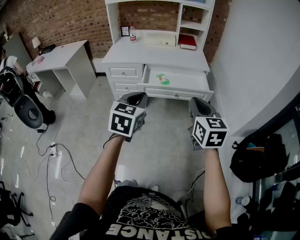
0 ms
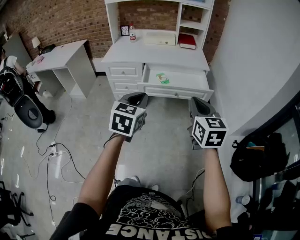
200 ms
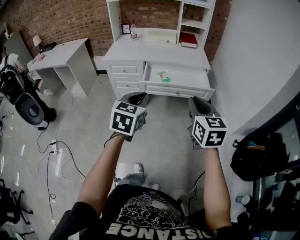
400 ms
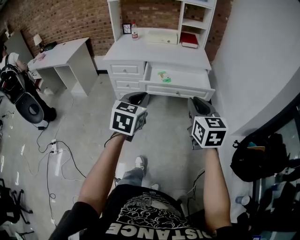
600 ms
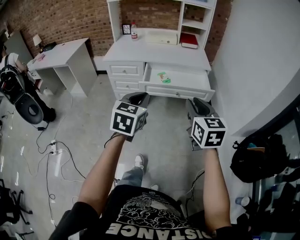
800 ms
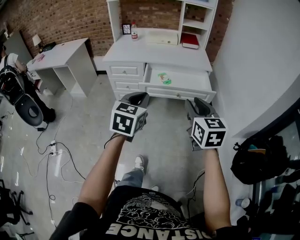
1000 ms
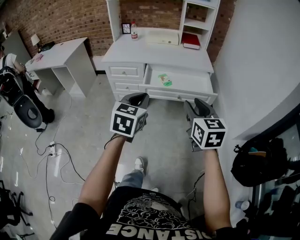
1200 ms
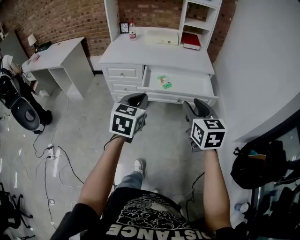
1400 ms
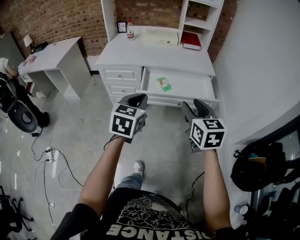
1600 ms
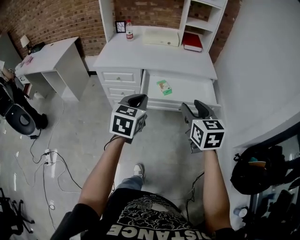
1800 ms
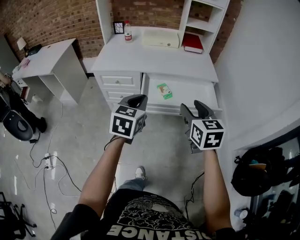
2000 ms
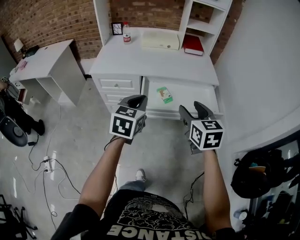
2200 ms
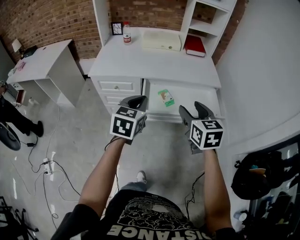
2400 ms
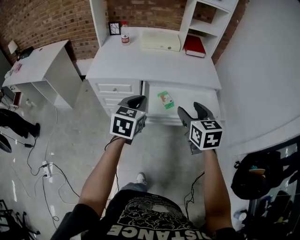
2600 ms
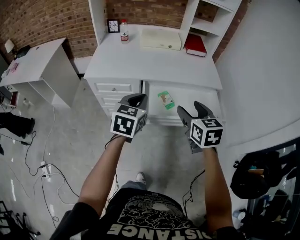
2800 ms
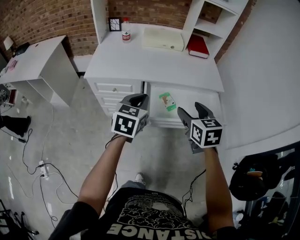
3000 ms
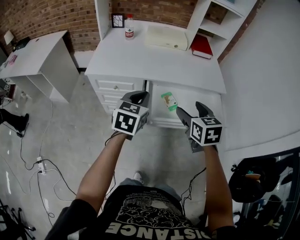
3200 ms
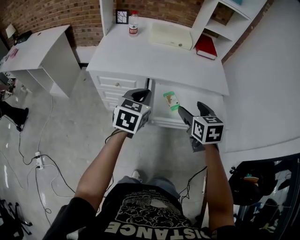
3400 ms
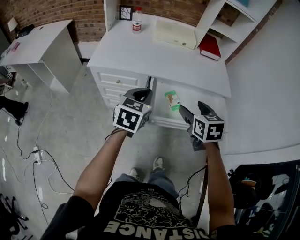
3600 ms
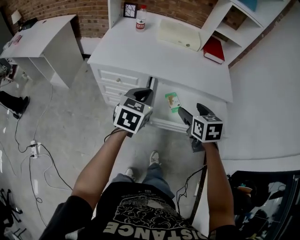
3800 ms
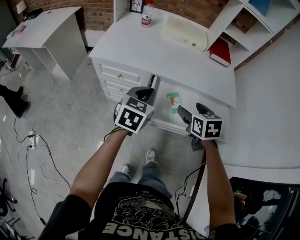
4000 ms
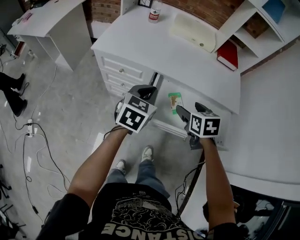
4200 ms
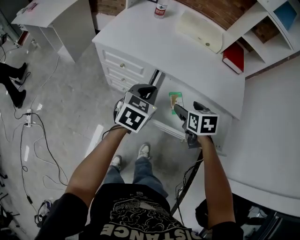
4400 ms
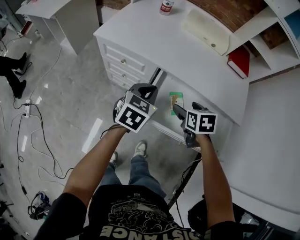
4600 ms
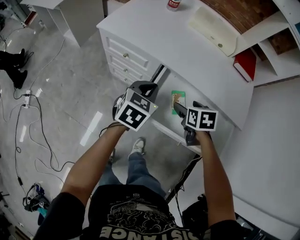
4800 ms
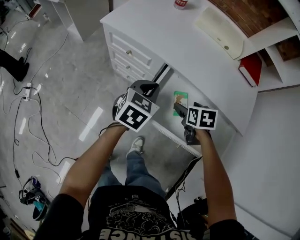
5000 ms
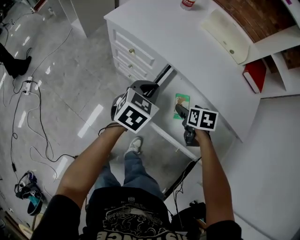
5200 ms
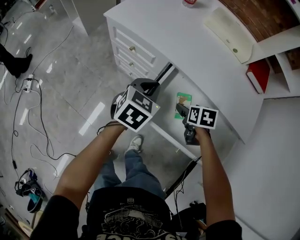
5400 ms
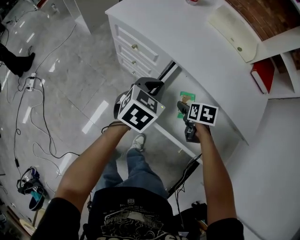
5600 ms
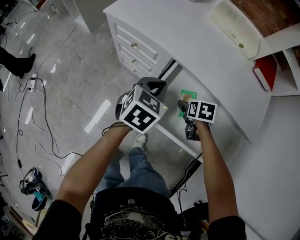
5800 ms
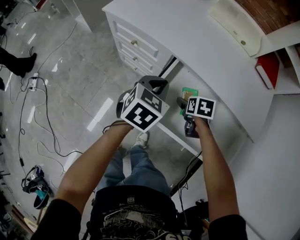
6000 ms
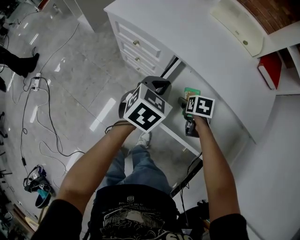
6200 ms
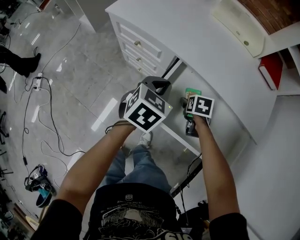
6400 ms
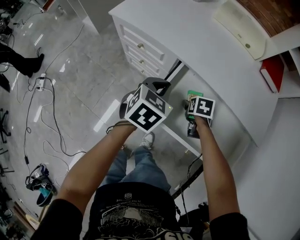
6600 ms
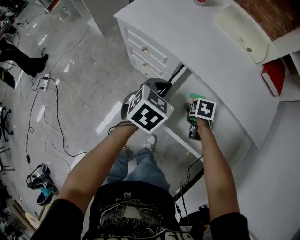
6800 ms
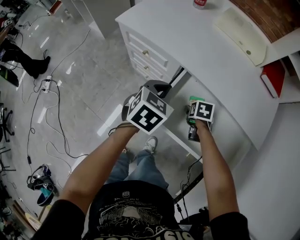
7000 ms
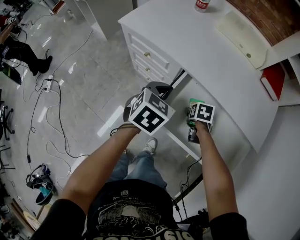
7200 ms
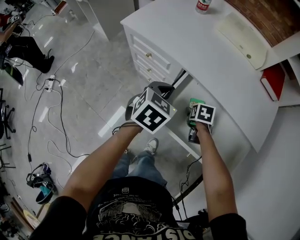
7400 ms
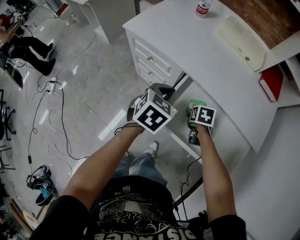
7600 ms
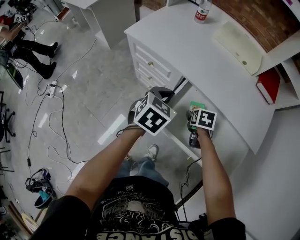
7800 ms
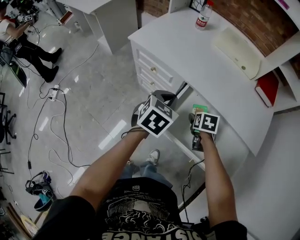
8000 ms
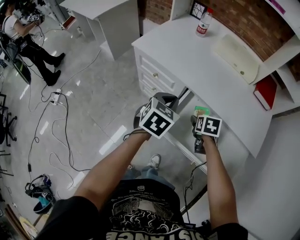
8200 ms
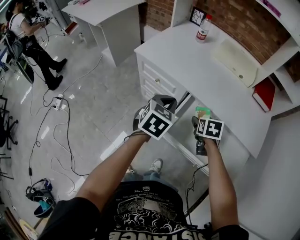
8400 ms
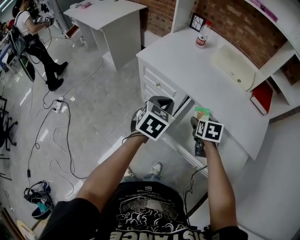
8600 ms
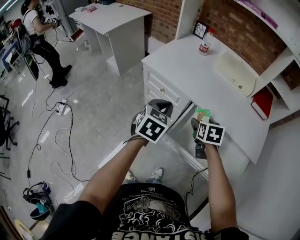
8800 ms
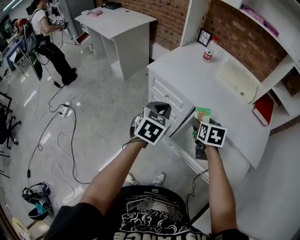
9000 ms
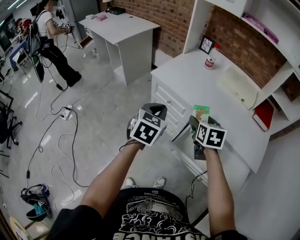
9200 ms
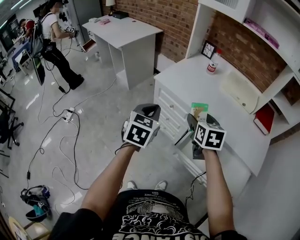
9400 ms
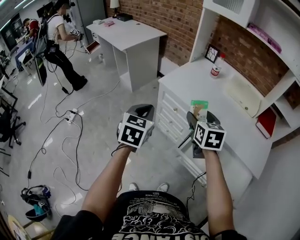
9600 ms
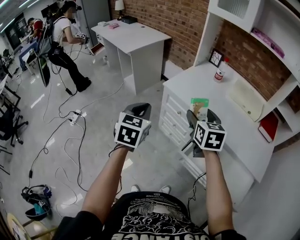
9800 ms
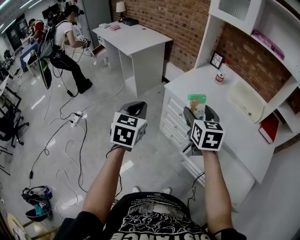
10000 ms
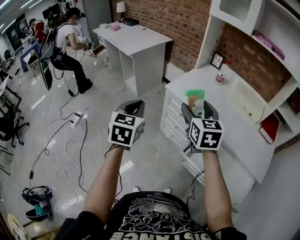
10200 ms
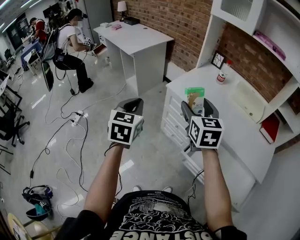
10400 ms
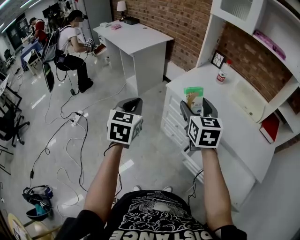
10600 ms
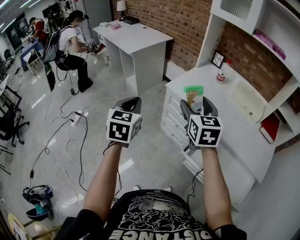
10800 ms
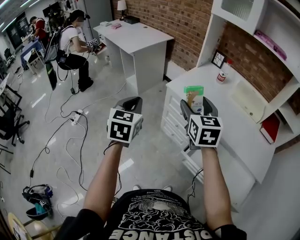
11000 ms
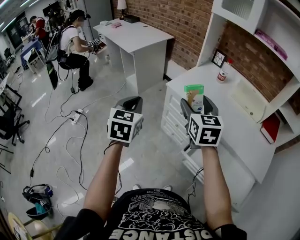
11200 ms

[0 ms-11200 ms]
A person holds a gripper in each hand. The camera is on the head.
0 ms to 1600 ms: Both grippers travel together forward, approximately 15 cm. The right gripper opens up.
1600 ms to 3200 ms: The right gripper shifts roughly 25 cm forward and to the left, and opens up. The left gripper goes roughly 25 cm forward.
3200 ms to 4800 ms: The left gripper travels downward and forward by some 15 cm. The right gripper heads downward and forward, covering about 25 cm, and turns by some 30 degrees.
4800 ms to 6400 ms: The left gripper ends up approximately 5 cm from where it was. Meanwhile the right gripper shifts approximately 15 cm downward.
6400 ms to 8000 ms: The grippers both shift upward by some 5 cm.
8000 ms to 9600 ms: The left gripper heads to the left and upward, covering about 25 cm, and changes its angle by some 30 degrees. The right gripper goes roughly 35 cm upward and to the left, and tips its fingers upward by some 40 degrees.
9600 ms to 11200 ms: The right gripper moves to the left and upward, approximately 10 cm, while the left gripper shifts about 10 cm to the left.

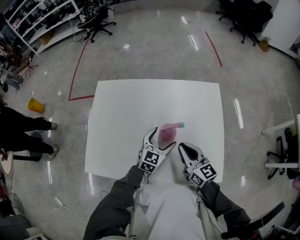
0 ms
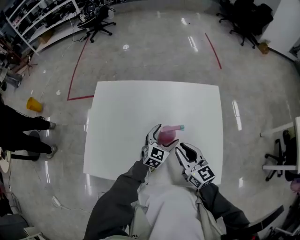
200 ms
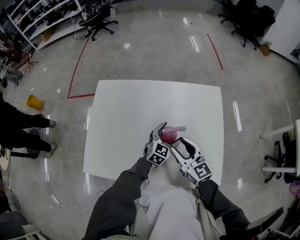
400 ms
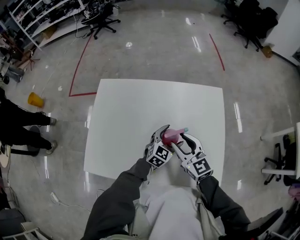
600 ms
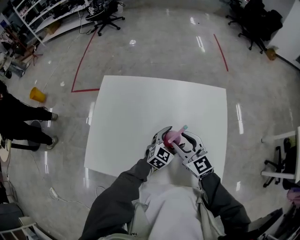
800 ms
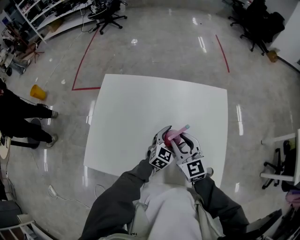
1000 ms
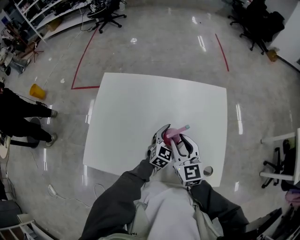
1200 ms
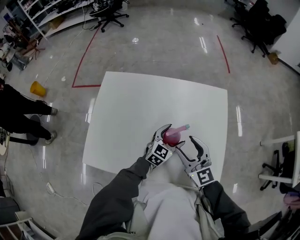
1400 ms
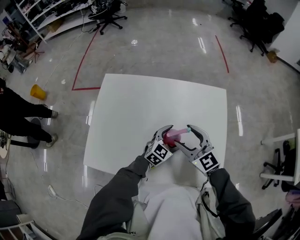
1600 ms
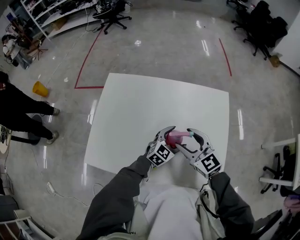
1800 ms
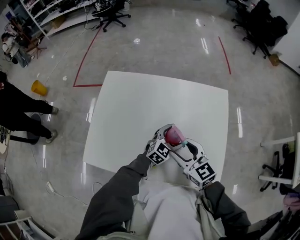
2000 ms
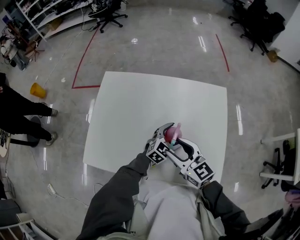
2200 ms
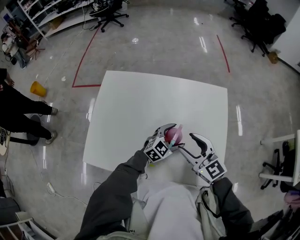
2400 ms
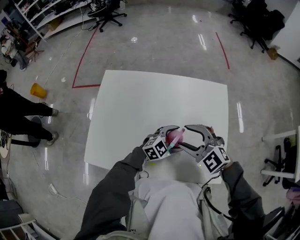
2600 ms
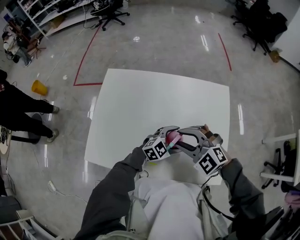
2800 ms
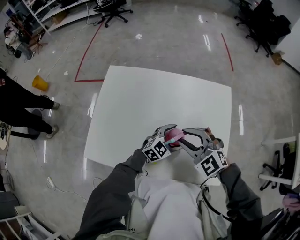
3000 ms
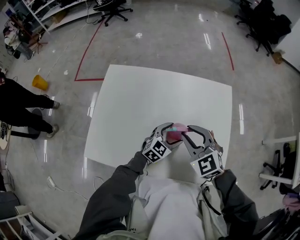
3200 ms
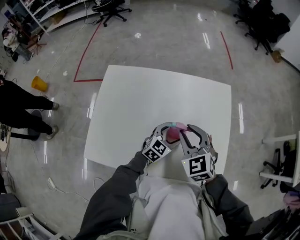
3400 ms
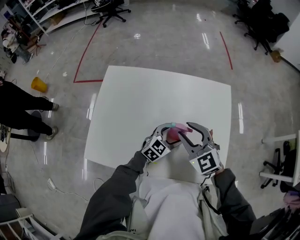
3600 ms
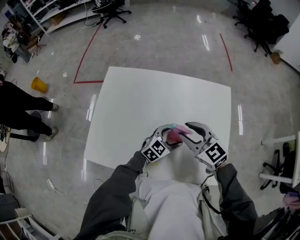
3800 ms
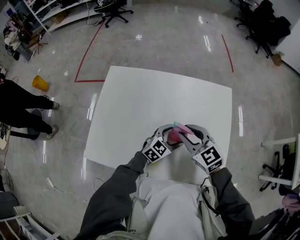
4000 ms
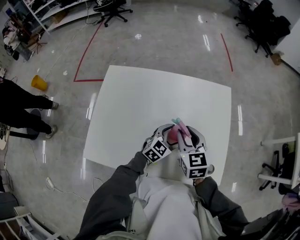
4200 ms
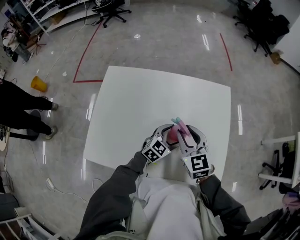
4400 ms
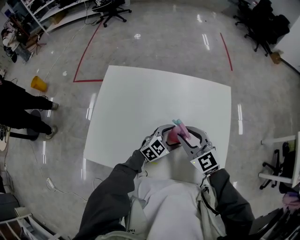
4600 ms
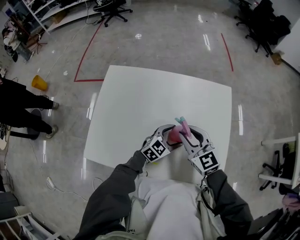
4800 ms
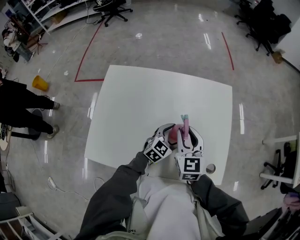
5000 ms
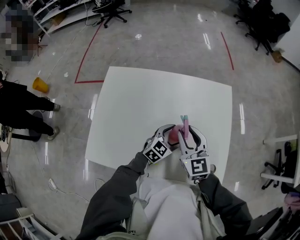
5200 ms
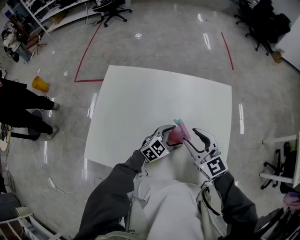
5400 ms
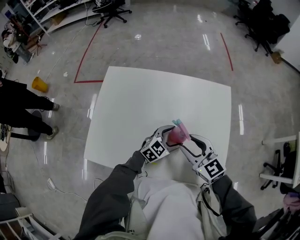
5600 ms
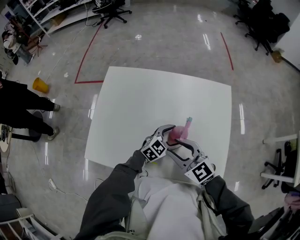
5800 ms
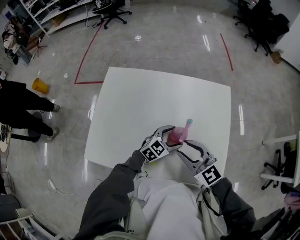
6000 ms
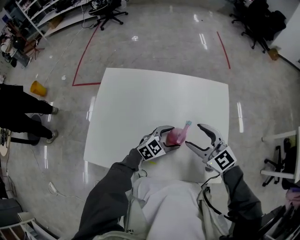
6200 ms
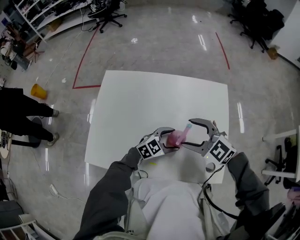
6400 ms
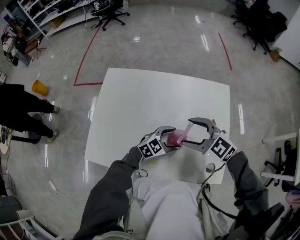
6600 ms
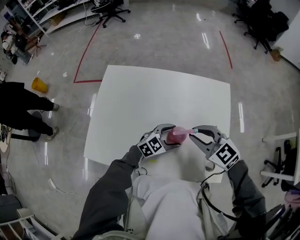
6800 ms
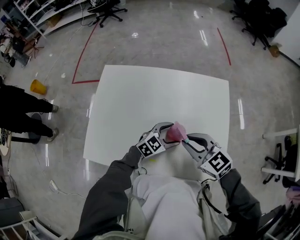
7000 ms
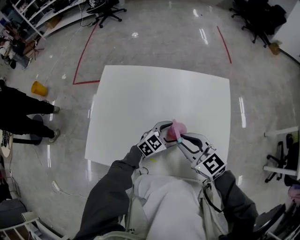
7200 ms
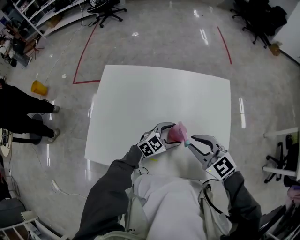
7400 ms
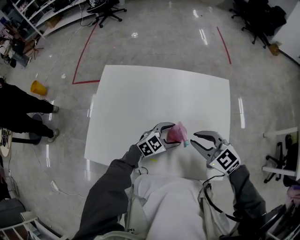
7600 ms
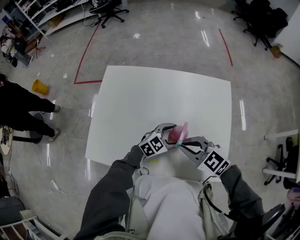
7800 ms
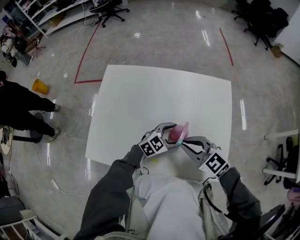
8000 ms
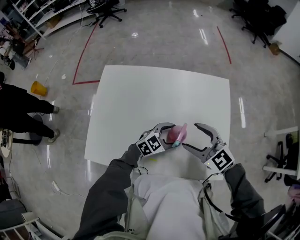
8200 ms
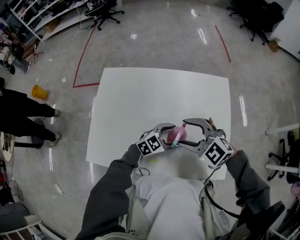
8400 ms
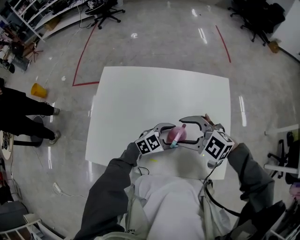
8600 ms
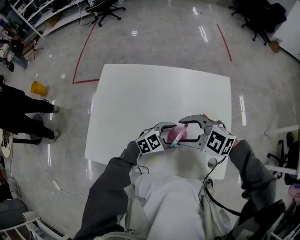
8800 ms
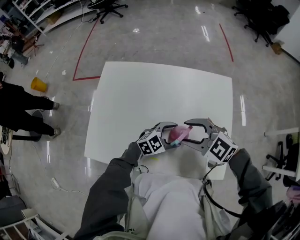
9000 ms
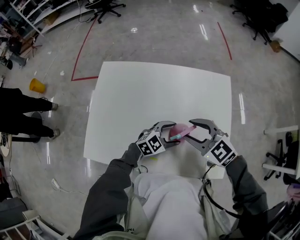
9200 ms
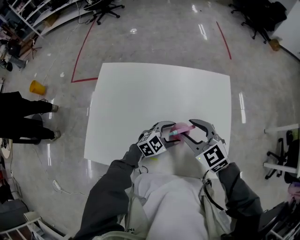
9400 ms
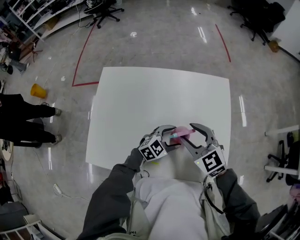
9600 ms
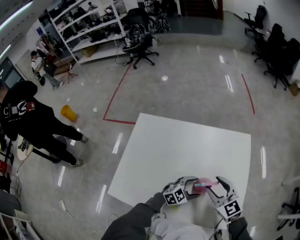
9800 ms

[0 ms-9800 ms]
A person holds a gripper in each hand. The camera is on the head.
0 ms to 1400 ms: The right gripper rotates some 20 degrees, and opens its fingers.
1400 ms to 2800 ms: The left gripper ends up roughly 5 cm from where it was, and rotates some 30 degrees; the right gripper turns by approximately 50 degrees.
2800 ms to 4200 ms: The right gripper changes place by some 5 cm, and twists approximately 50 degrees clockwise, seen from behind.
4200 ms to 5600 ms: The right gripper shifts by approximately 5 cm, and swivels roughly 30 degrees.
5600 ms to 7000 ms: The right gripper closes.
7000 ms to 8400 ms: The right gripper swivels roughly 30 degrees, and opens.
8400 ms to 9800 ms: The right gripper changes place by roughly 5 cm, and swivels some 30 degrees.

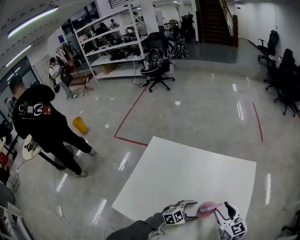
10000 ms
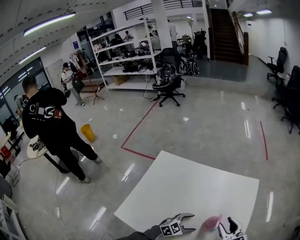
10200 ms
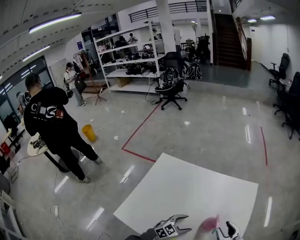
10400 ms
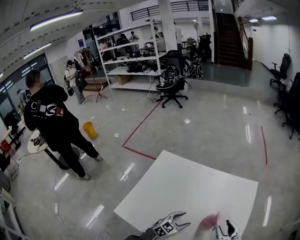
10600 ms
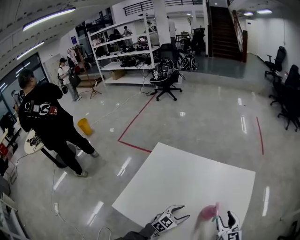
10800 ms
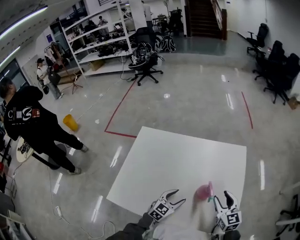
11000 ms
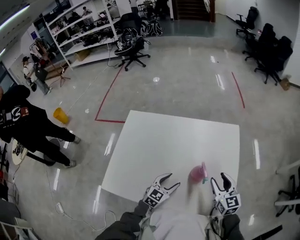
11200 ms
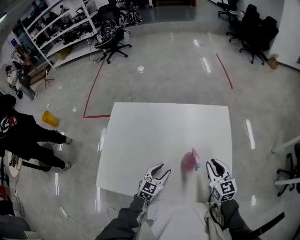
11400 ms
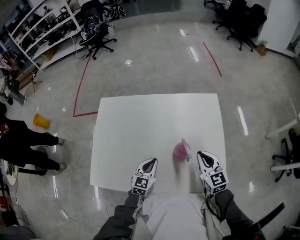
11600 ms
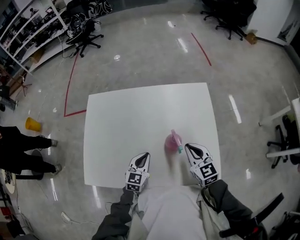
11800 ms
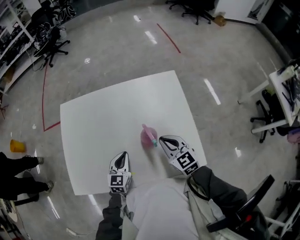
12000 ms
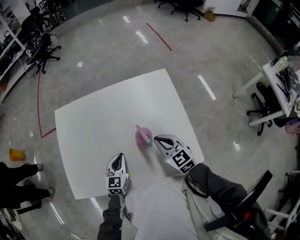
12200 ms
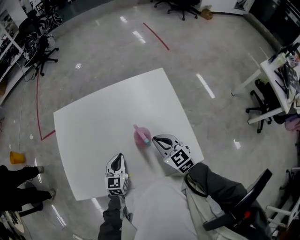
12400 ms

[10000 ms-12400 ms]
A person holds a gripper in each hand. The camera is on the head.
10000 ms to 11200 ms: The left gripper heads to the left, covering some 10 cm, and changes its angle by about 30 degrees.
11200 ms to 12400 ms: The right gripper moves to the left, about 5 cm, and closes. Meanwhile the left gripper closes up.
